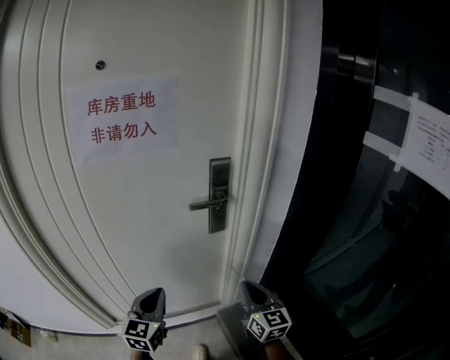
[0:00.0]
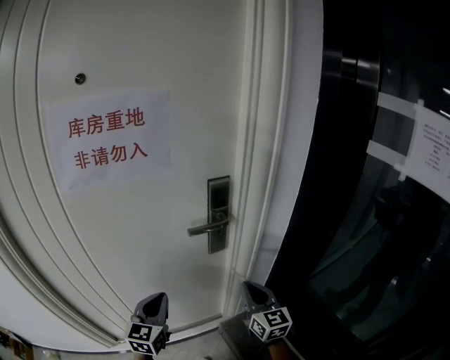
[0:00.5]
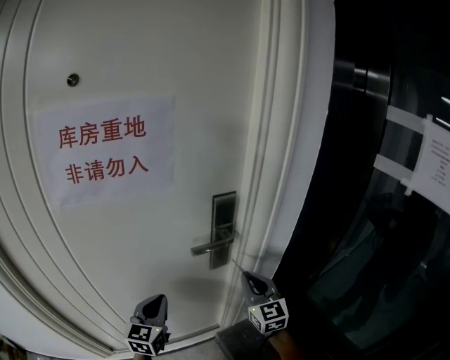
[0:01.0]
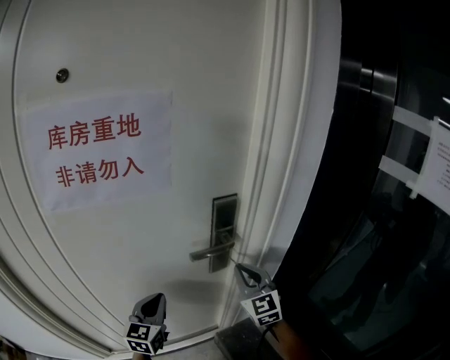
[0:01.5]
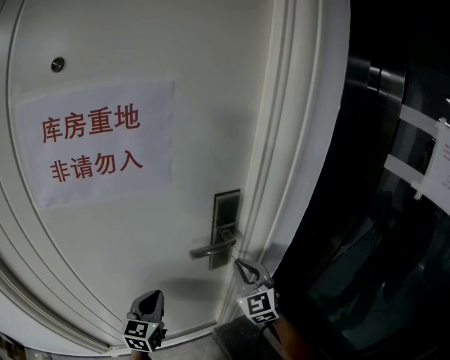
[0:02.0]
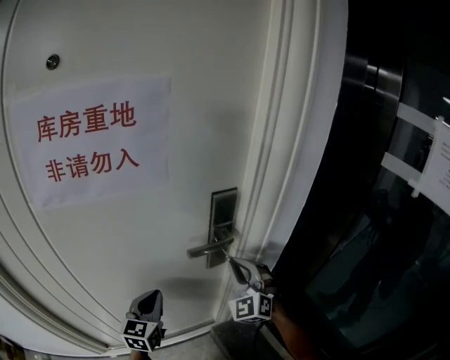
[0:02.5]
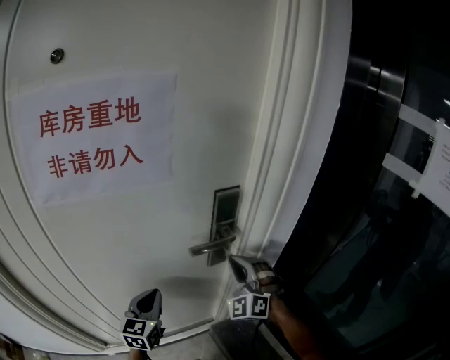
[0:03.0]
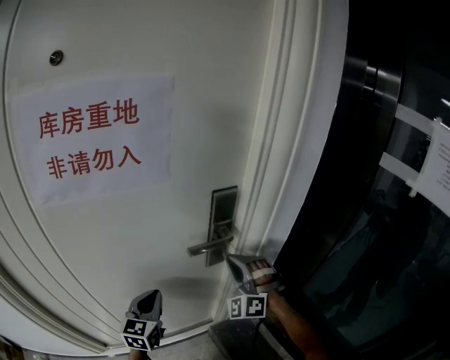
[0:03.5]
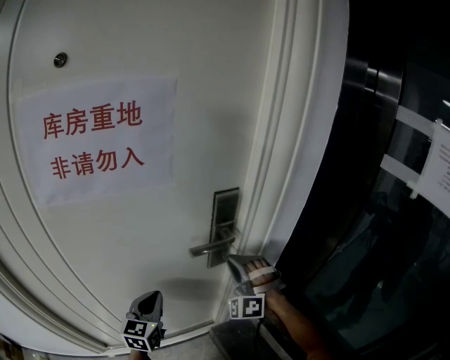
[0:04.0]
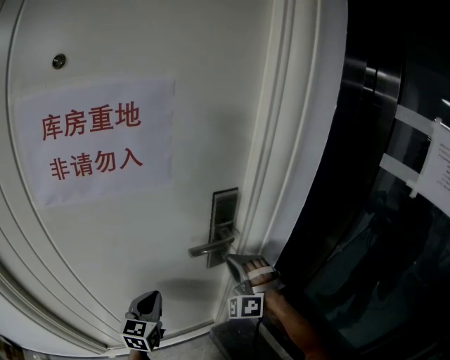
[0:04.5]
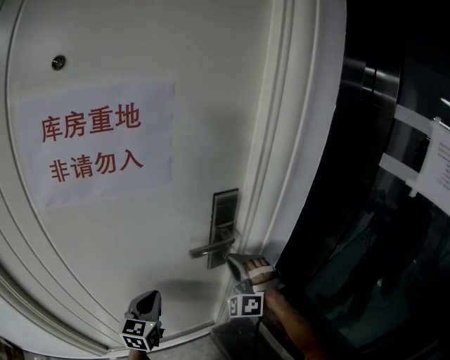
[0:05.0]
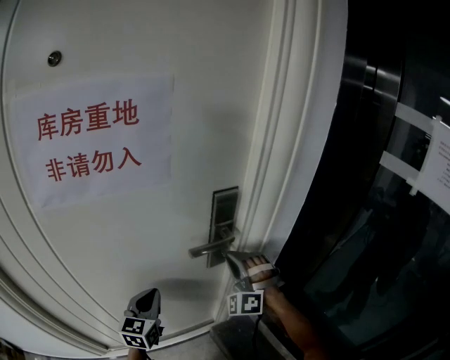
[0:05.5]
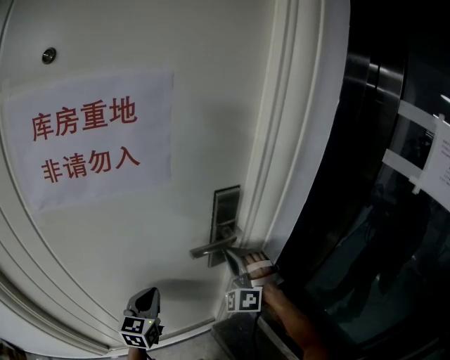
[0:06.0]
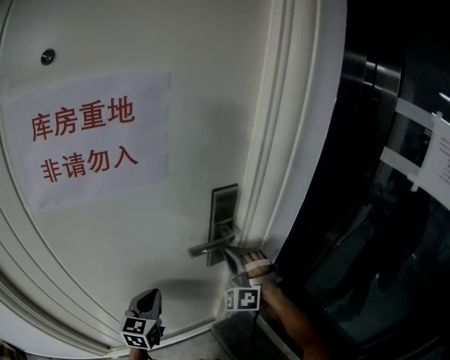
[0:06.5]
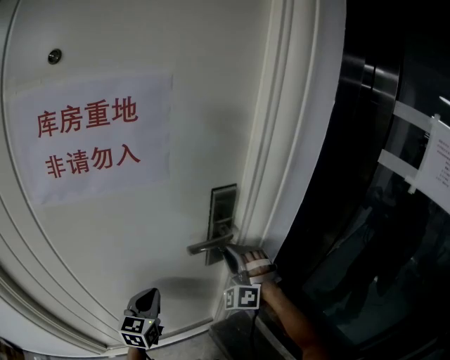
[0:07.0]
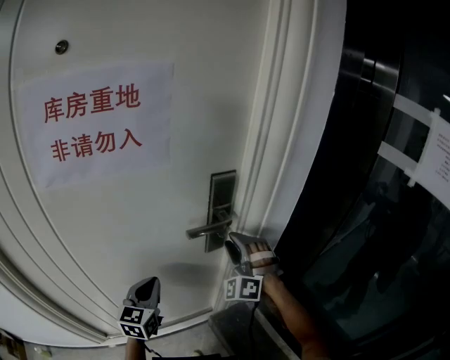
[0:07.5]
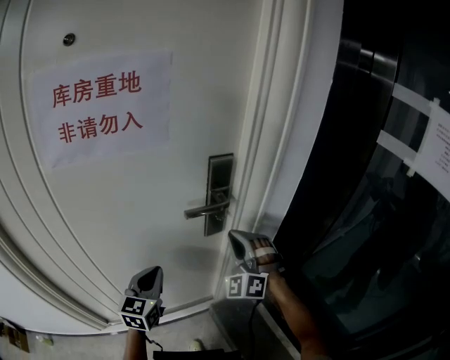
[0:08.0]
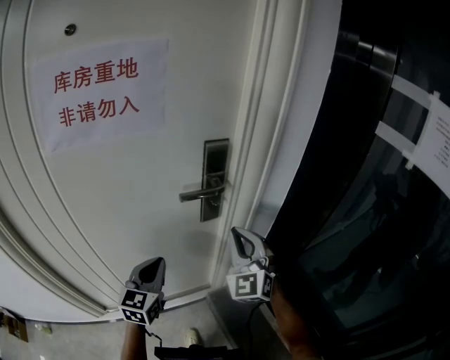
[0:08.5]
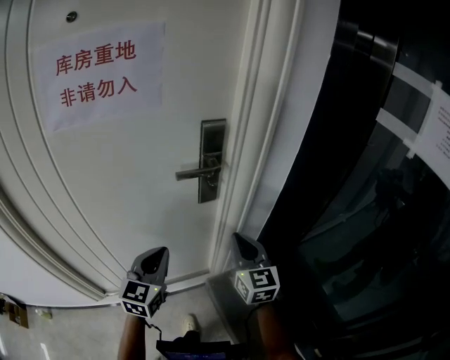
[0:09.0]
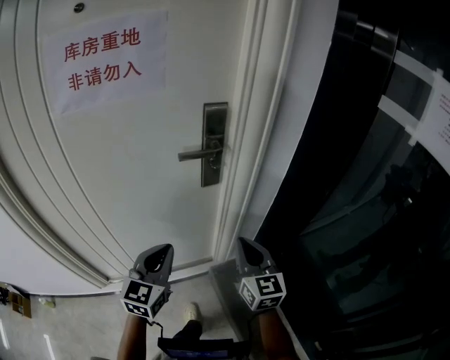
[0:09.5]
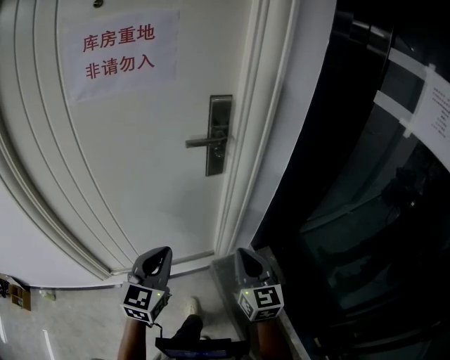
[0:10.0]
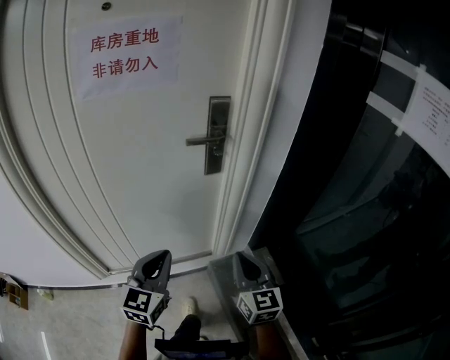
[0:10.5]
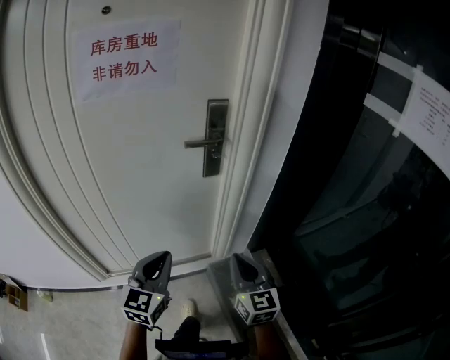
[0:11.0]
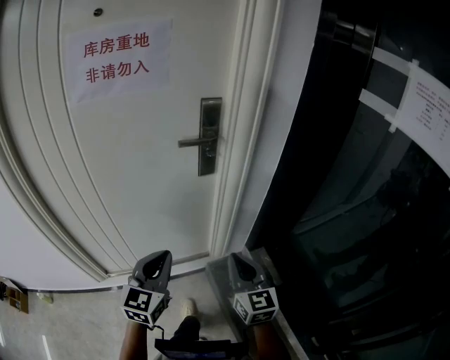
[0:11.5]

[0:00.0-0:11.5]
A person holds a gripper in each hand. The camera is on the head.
0:00.0 to 0:02.0: The two grippers go some 20 cm forward. The right gripper turns by some 40 degrees.
0:02.0 to 0:04.0: The right gripper twists some 60 degrees counterclockwise, seen from behind.
0:04.0 to 0:06.0: There are only small adjustments of the grippers.
0:06.0 to 0:07.5: The right gripper opens up.
0:07.5 to 0:09.5: The two grippers go some 20 cm backward and to the right. The right gripper rotates around the line of its fingers by some 80 degrees, clockwise from behind, and closes up.
0:09.5 to 0:11.5: The two grippers go about 10 cm backward.

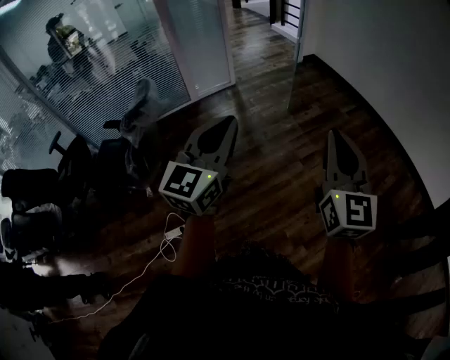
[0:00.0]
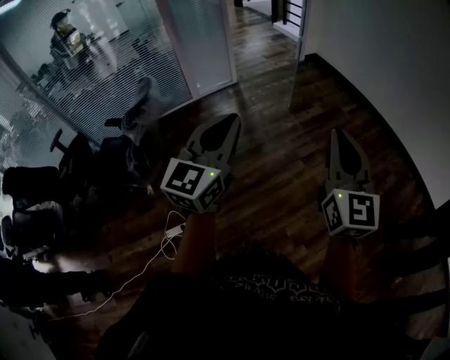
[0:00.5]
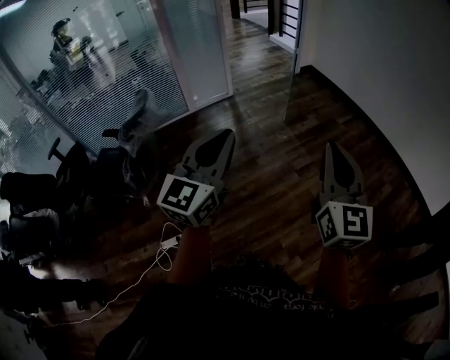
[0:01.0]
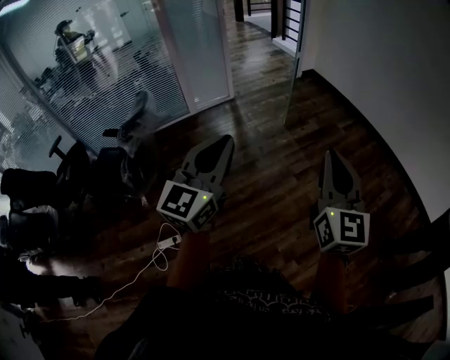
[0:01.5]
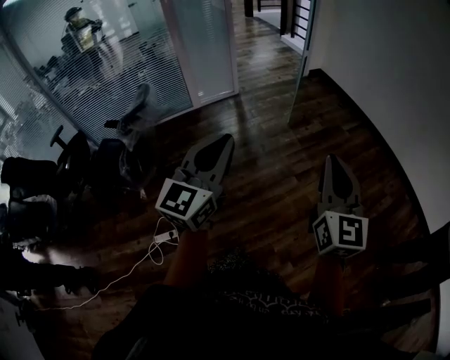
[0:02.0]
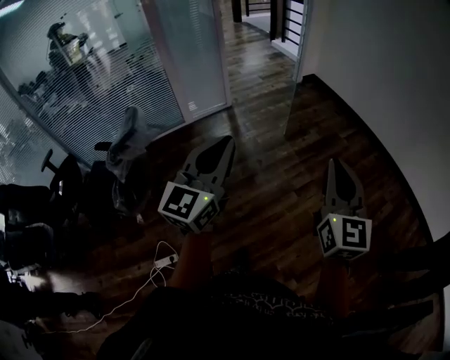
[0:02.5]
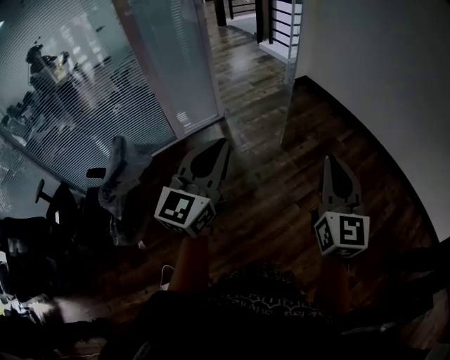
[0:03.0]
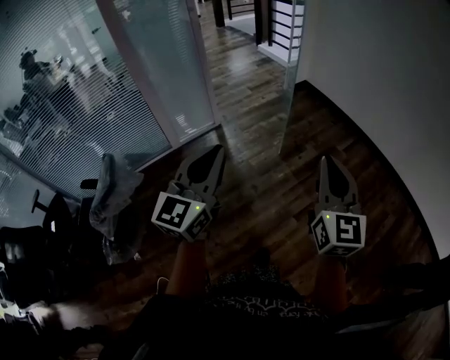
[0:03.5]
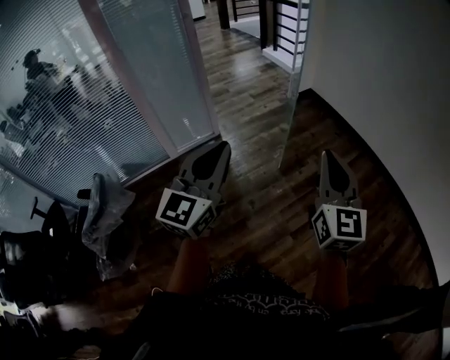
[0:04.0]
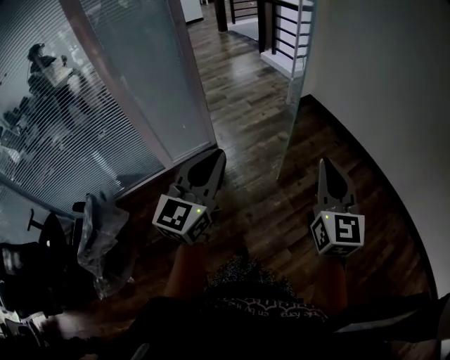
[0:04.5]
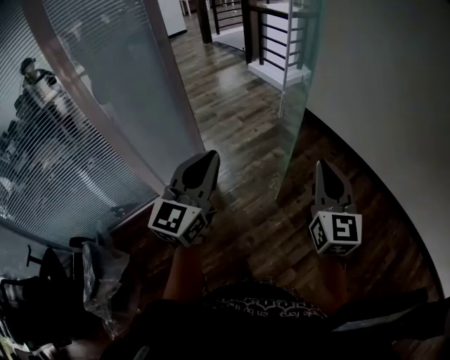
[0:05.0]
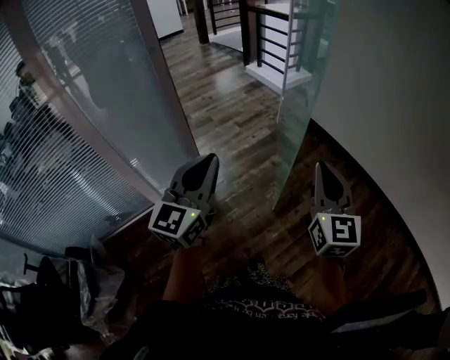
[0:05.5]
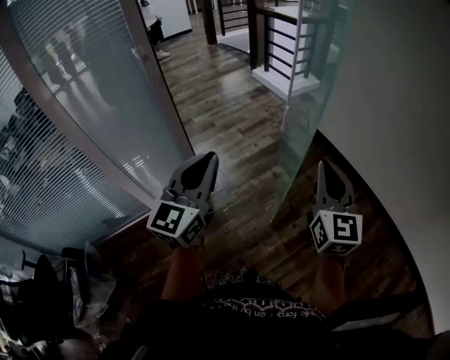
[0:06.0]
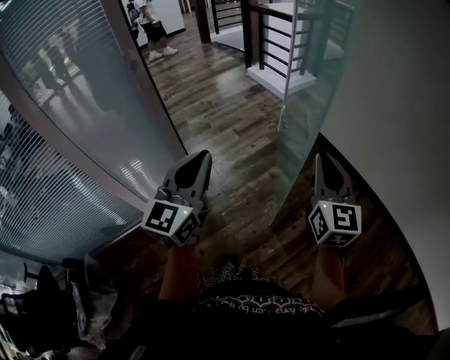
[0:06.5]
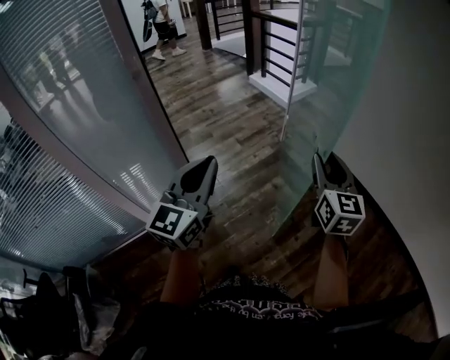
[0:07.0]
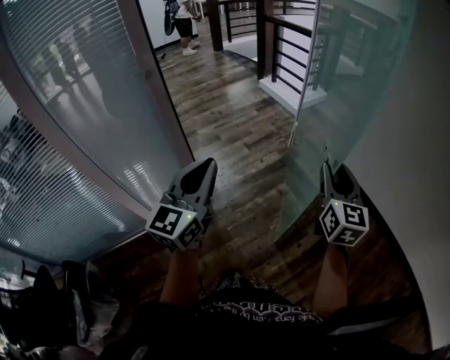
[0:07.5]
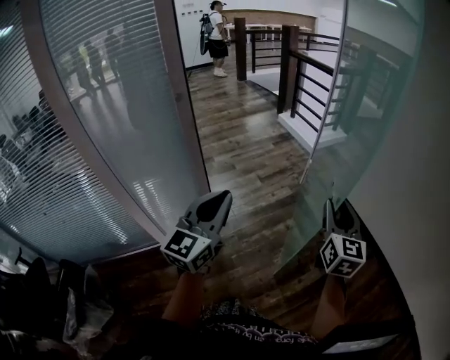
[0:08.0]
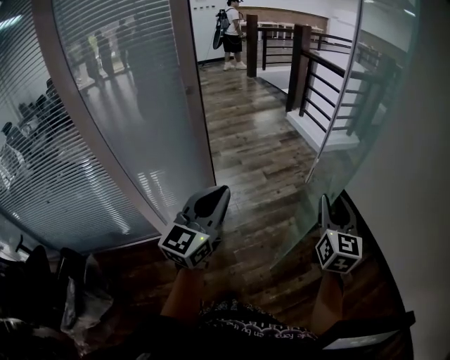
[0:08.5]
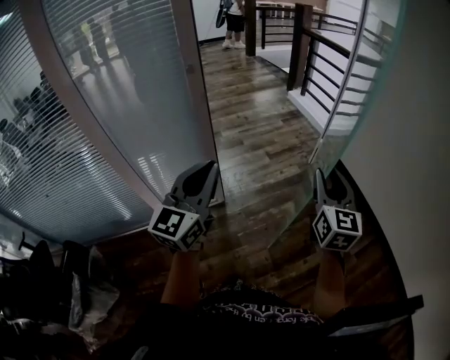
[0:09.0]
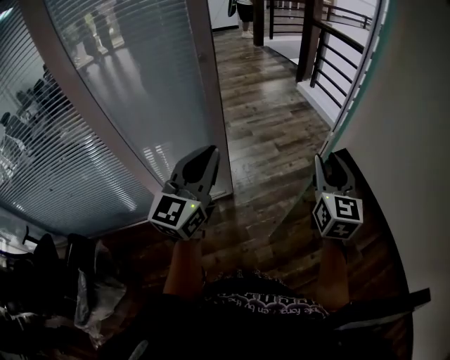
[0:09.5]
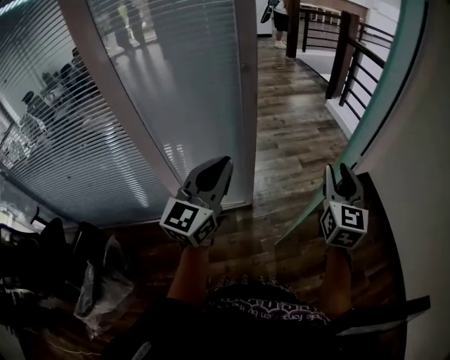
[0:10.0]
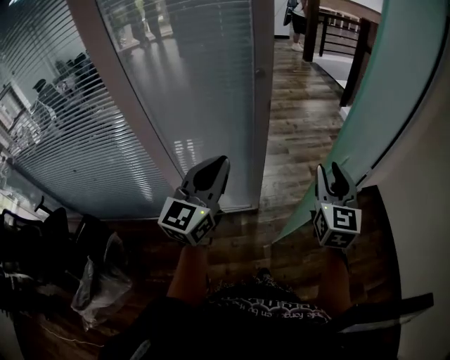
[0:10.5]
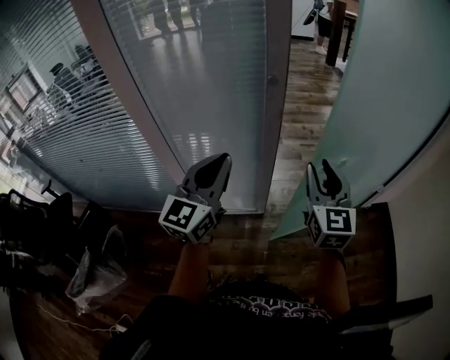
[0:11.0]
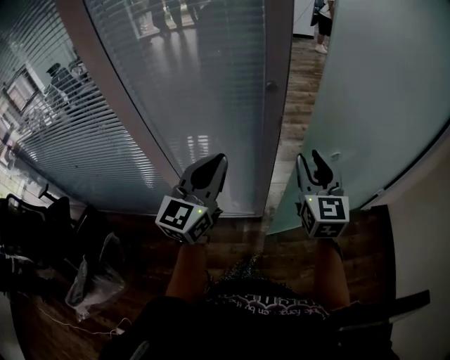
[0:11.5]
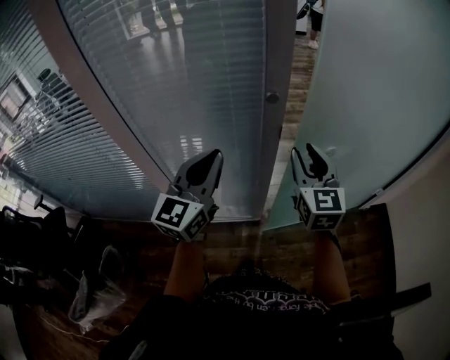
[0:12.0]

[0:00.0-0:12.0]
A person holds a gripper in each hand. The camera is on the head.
0:00.0 to 0:02.0: The right gripper goes some 5 cm to the right.
0:02.0 to 0:04.0: The pair of grippers is taken forward, some 50 cm.
0:04.0 to 0:06.0: The two grippers travel together, forward, some 40 cm.
0:06.0 to 0:08.0: The right gripper moves forward, about 15 cm, and opens. Meanwhile the left gripper heads forward and to the left, covering about 15 cm.
0:08.0 to 0:10.0: Both grippers travel together to the left, approximately 20 cm.
0:10.0 to 0:12.0: The right gripper is displaced forward and to the left by roughly 30 cm, and swivels roughly 20 degrees; the left gripper goes approximately 20 cm forward.

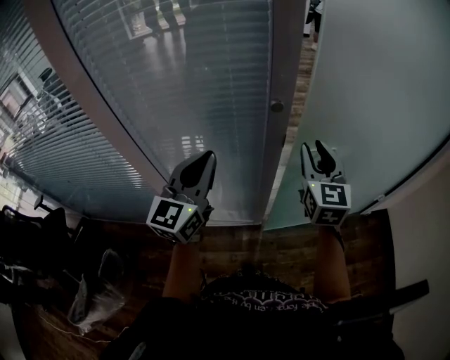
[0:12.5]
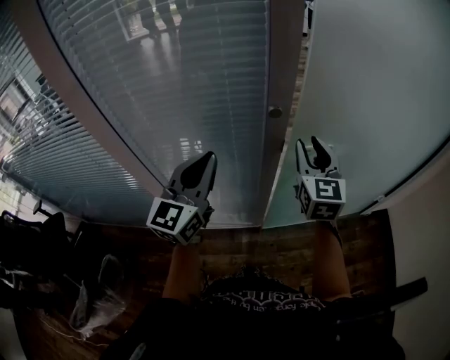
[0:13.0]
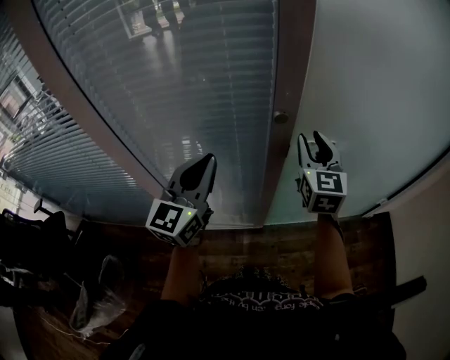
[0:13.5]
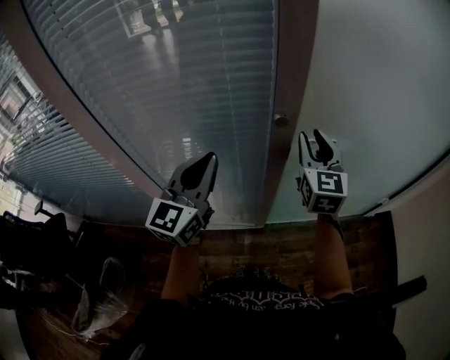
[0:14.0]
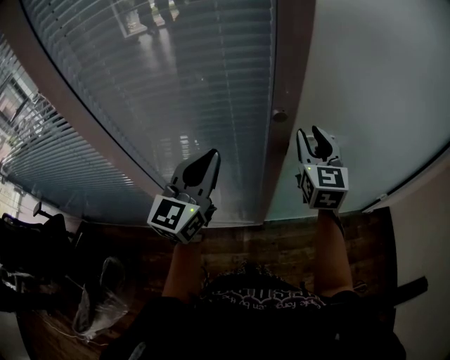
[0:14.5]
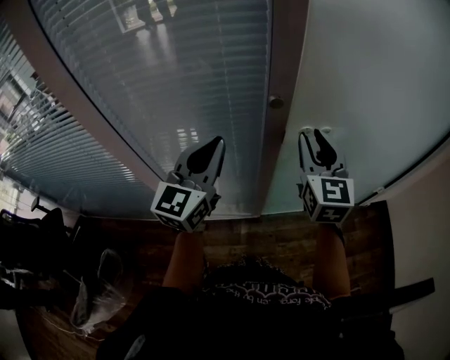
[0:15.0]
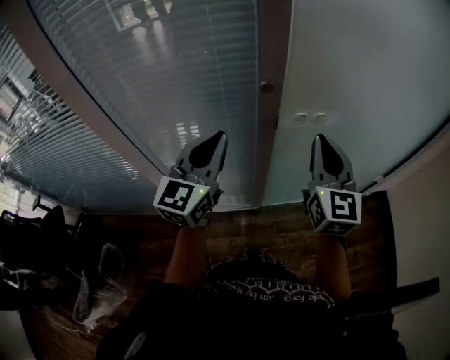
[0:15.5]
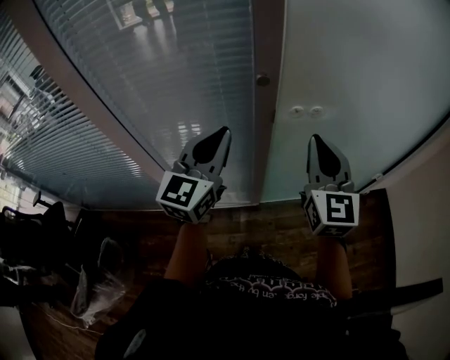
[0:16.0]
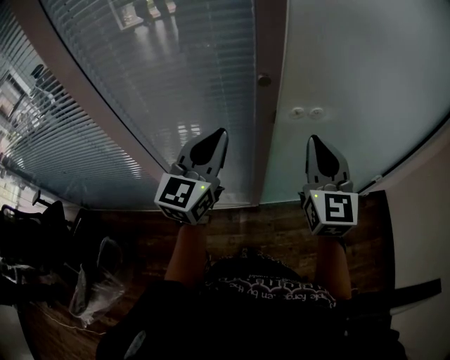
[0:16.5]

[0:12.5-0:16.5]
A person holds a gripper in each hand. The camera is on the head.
0:12.5 to 0:14.5: The two grippers go some 5 cm forward.
0:14.5 to 0:16.5: The right gripper moves backward, approximately 15 cm, and closes its fingers. The left gripper goes some 5 cm to the right.
